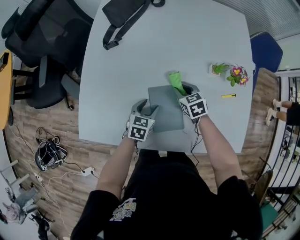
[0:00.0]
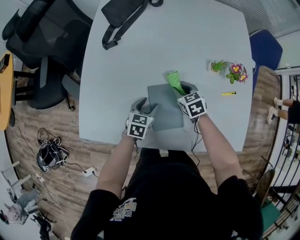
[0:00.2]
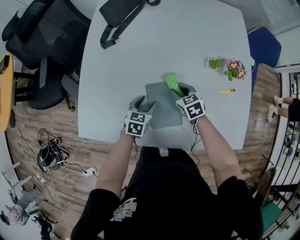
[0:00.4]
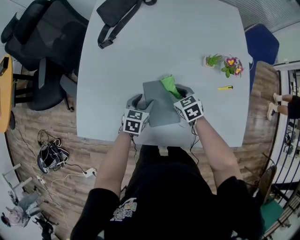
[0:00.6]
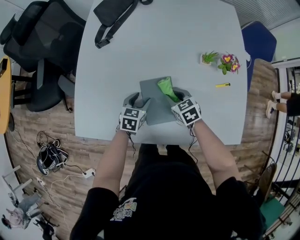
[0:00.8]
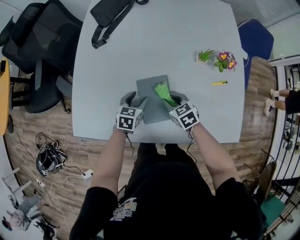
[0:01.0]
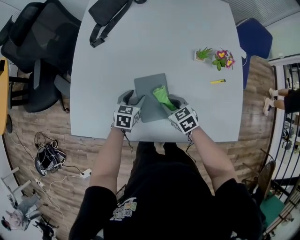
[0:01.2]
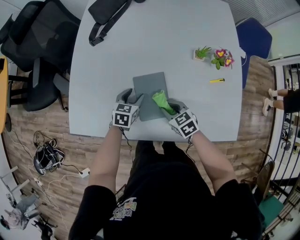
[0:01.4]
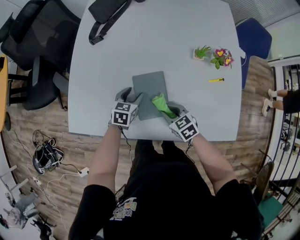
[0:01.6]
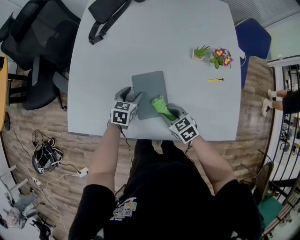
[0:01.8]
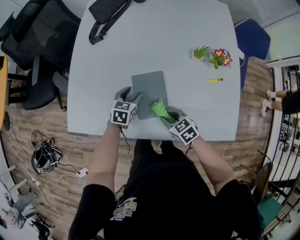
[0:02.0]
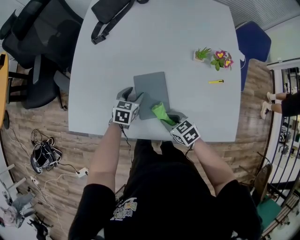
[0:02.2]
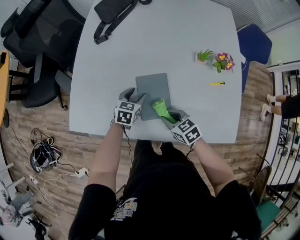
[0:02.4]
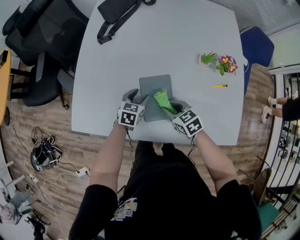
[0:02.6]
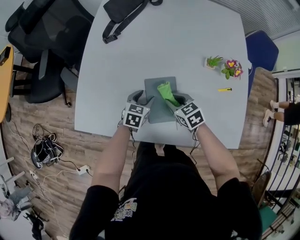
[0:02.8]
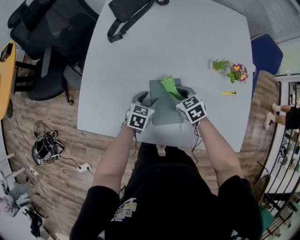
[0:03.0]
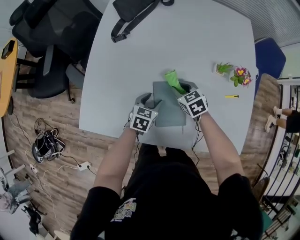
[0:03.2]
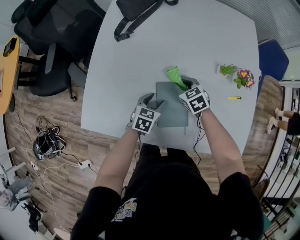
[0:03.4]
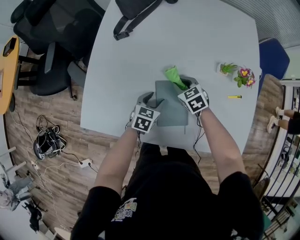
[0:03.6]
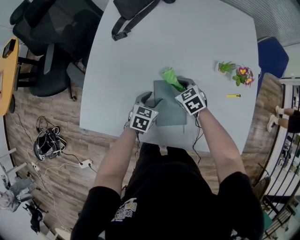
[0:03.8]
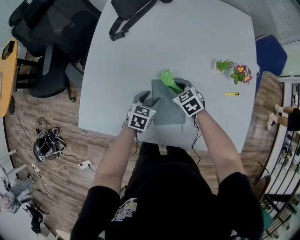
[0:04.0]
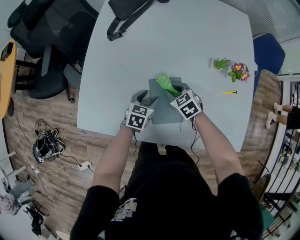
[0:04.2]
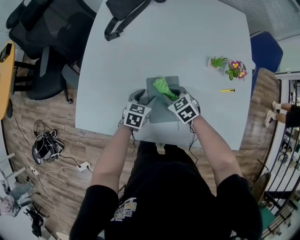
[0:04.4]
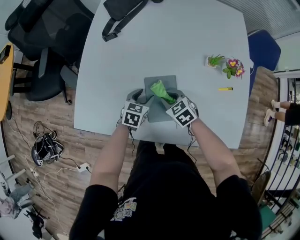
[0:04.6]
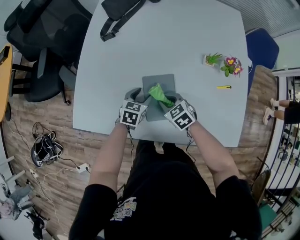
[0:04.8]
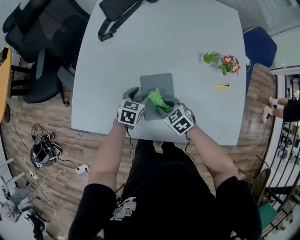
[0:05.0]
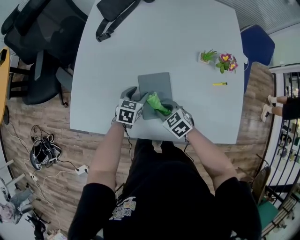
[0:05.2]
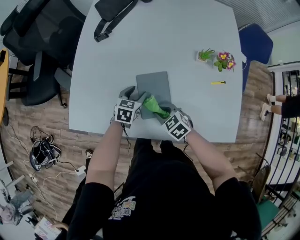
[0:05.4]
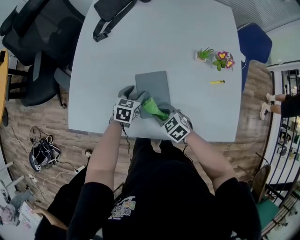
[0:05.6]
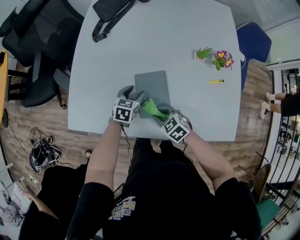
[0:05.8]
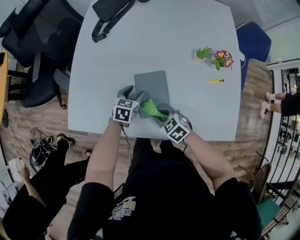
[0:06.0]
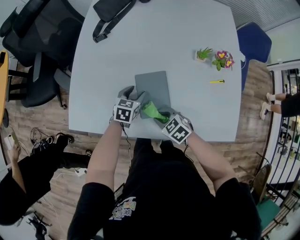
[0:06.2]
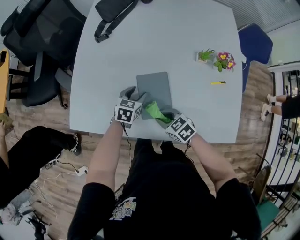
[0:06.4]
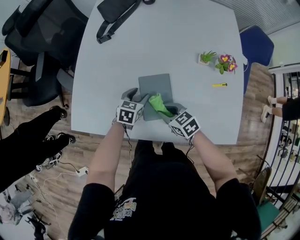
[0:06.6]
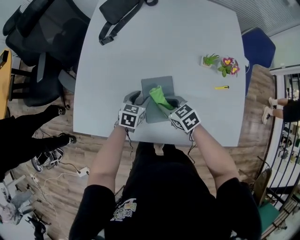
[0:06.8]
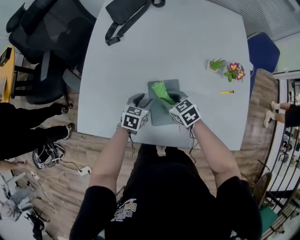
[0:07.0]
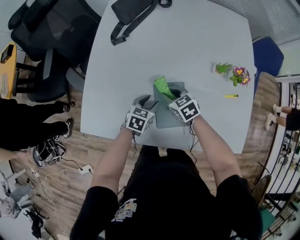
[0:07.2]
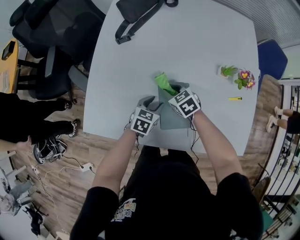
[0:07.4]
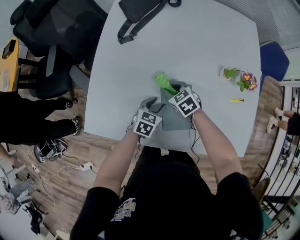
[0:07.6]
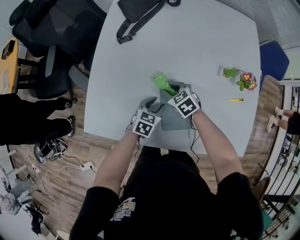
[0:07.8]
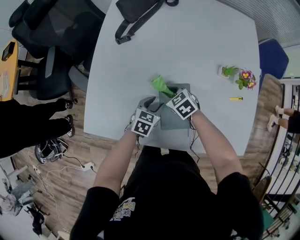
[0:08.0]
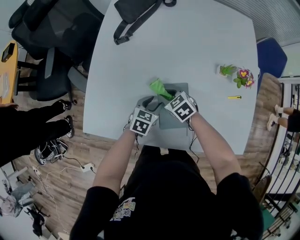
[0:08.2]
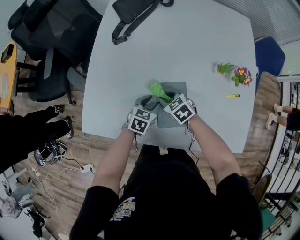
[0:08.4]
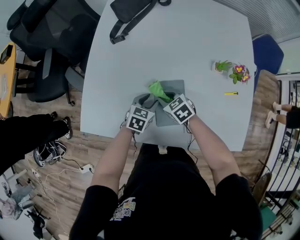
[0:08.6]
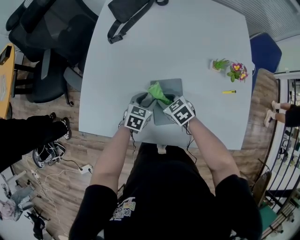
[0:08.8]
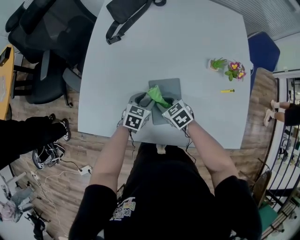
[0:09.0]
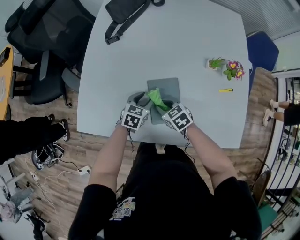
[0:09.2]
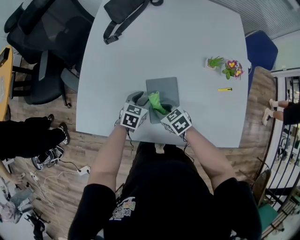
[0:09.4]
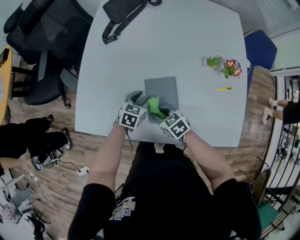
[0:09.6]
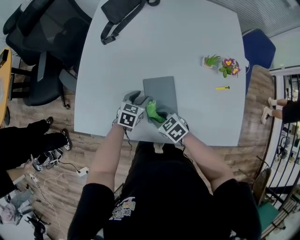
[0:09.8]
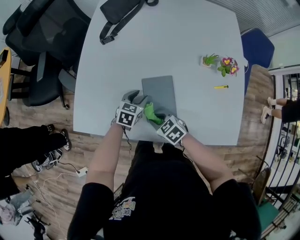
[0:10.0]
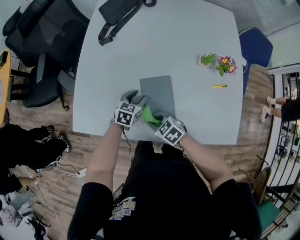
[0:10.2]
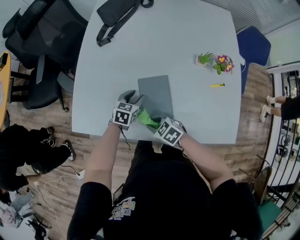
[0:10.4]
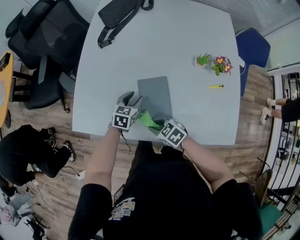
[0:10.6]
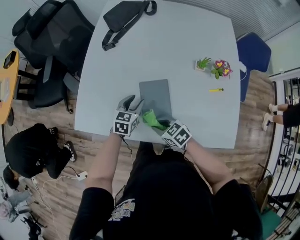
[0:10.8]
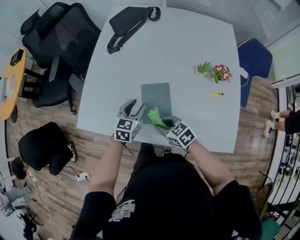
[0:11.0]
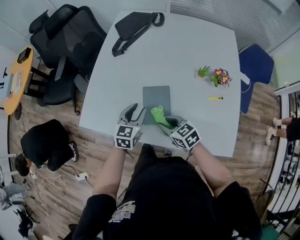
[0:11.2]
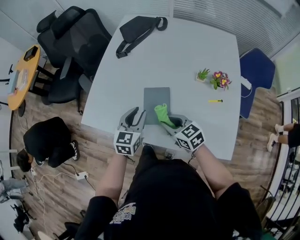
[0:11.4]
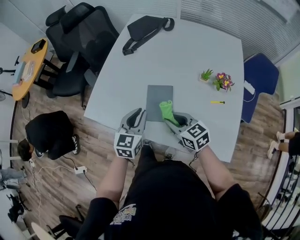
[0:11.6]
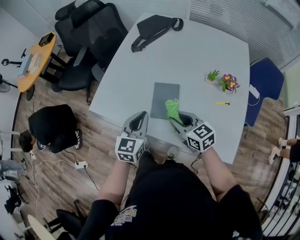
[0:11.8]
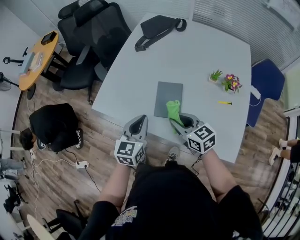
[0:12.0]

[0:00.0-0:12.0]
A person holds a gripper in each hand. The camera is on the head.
0.0 to 1.6 s: The right gripper travels backward by approximately 15 cm.
1.6 to 3.0 s: The right gripper moves forward, some 10 cm.
3.0 to 4.4 s: The grippers stay close to where they were, moving slightly.
4.4 to 6.0 s: The right gripper goes some 15 cm backward.
6.0 to 7.6 s: The right gripper travels forward by some 20 cm.
7.6 to 9.0 s: The right gripper moves backward, roughly 10 cm.
9.0 to 10.4 s: The right gripper is displaced backward by approximately 10 cm.
10.4 to 12.0 s: The left gripper shifts about 25 cm upward and backward, swivels about 40 degrees, and closes up; the right gripper heads upward and to the right, covering roughly 20 cm, and rotates some 30 degrees.

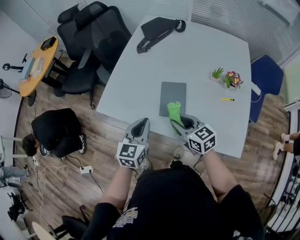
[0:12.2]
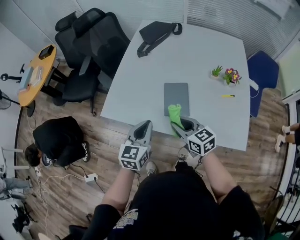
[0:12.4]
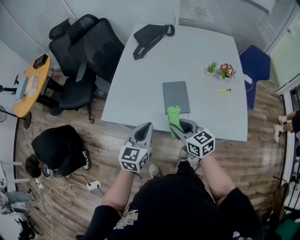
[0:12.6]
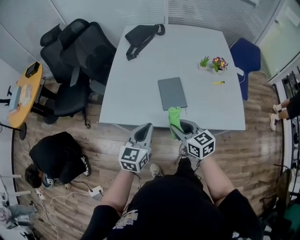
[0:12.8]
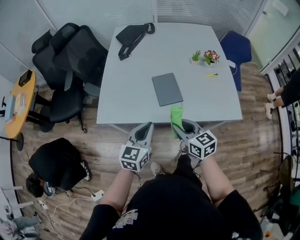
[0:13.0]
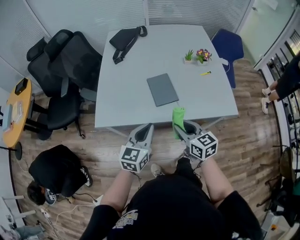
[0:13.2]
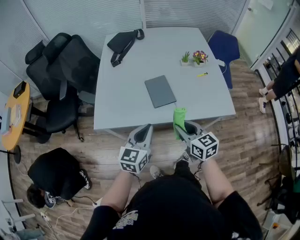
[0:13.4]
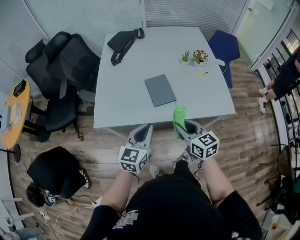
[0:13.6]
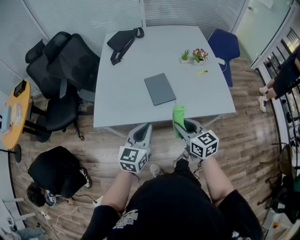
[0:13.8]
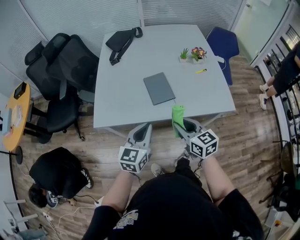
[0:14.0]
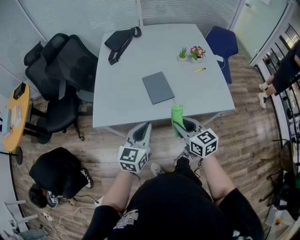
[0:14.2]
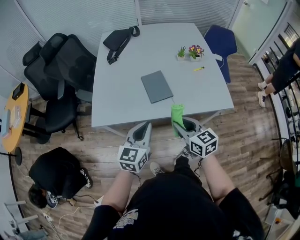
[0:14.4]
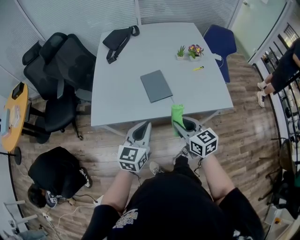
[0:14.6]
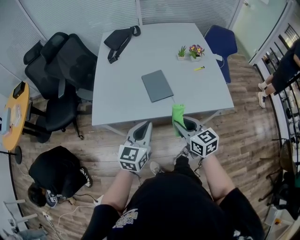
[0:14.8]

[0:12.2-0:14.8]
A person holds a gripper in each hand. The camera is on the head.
12.2 to 13.4 s: The right gripper shifts by approximately 15 cm, and changes its angle by approximately 30 degrees; the left gripper moves roughly 10 cm, and turns by roughly 30 degrees.
13.4 to 14.8 s: The grippers make only small movements.

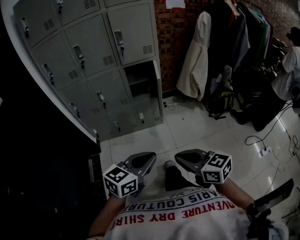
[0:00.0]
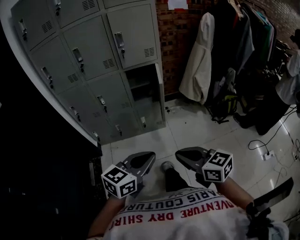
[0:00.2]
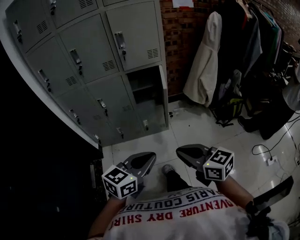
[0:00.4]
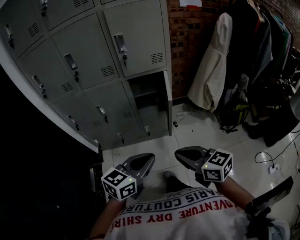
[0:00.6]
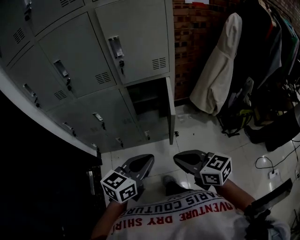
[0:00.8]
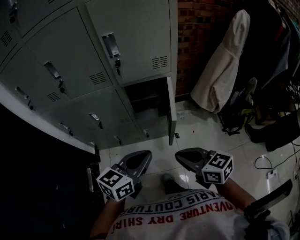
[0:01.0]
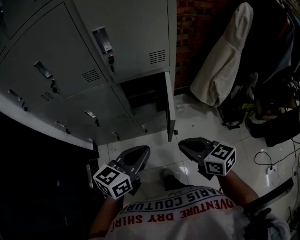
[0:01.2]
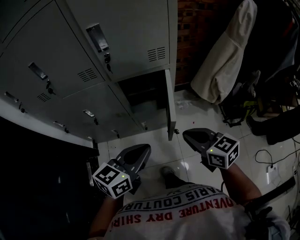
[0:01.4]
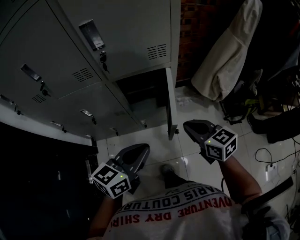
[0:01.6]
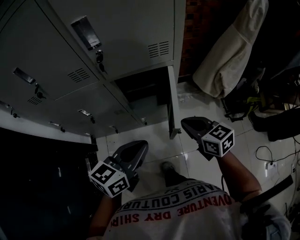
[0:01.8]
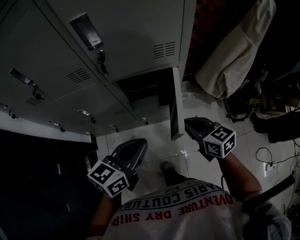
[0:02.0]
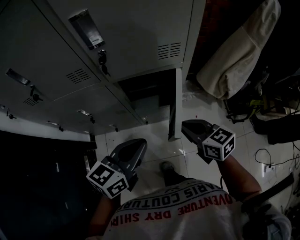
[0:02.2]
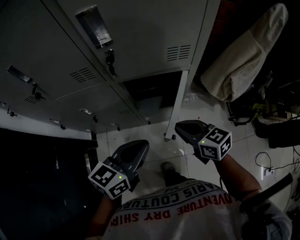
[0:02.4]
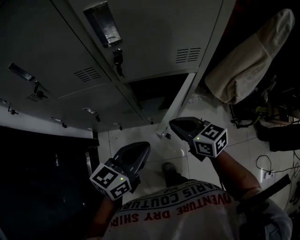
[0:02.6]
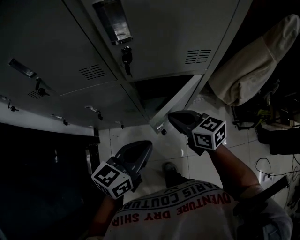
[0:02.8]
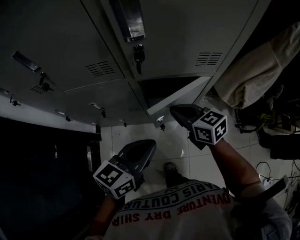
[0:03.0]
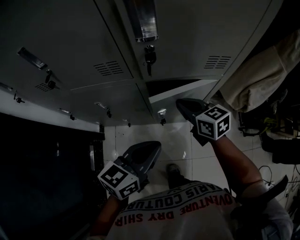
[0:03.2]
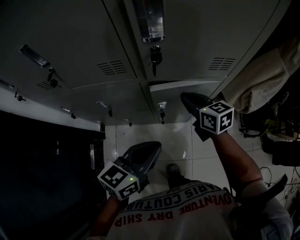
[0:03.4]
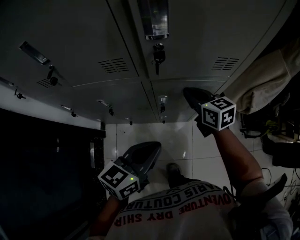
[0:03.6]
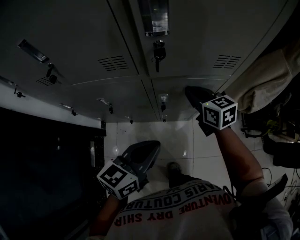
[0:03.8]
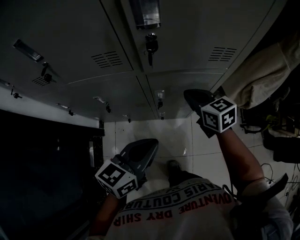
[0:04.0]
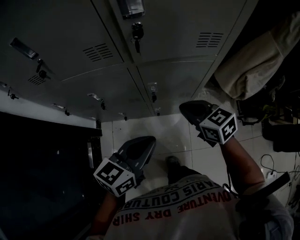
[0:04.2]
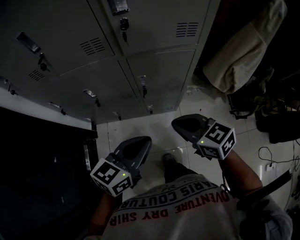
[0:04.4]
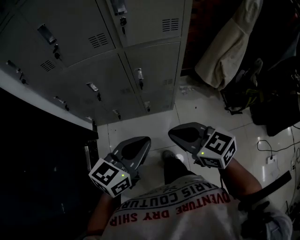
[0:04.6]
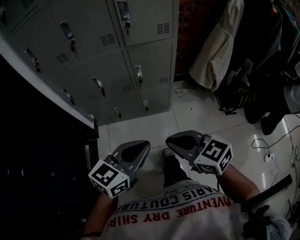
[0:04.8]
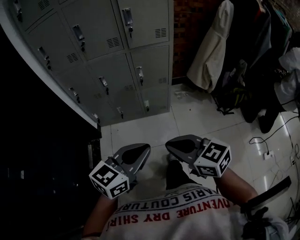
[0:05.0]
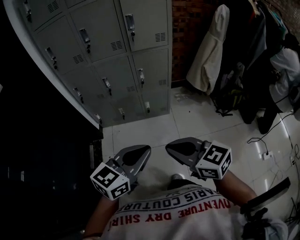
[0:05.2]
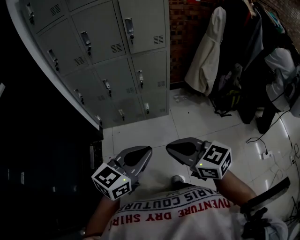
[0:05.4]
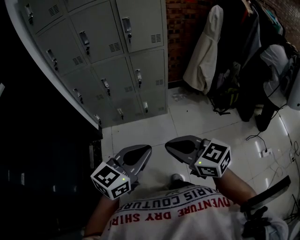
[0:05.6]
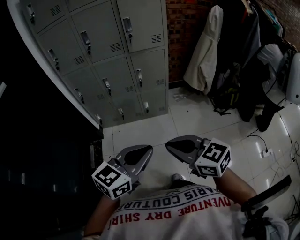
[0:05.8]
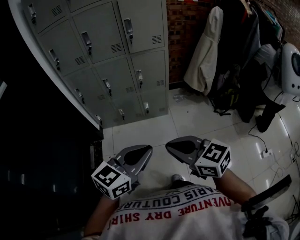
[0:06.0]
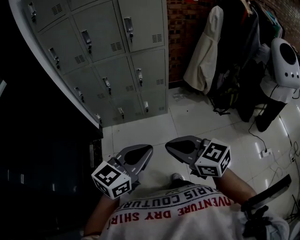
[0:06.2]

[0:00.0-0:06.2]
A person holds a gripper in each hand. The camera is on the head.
0.0 to 1.6 s: The pair of grippers is taken forward, some 50 cm.
1.6 to 3.2 s: The right gripper is displaced forward and to the left by approximately 25 cm. Meanwhile the left gripper shifts about 10 cm forward and to the left.
3.2 to 4.6 s: The left gripper is displaced backward by roughly 20 cm. Meanwhile the right gripper heads backward, covering roughly 35 cm.
4.6 to 6.2 s: The two grippers go roughly 35 cm backward.

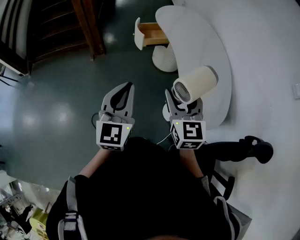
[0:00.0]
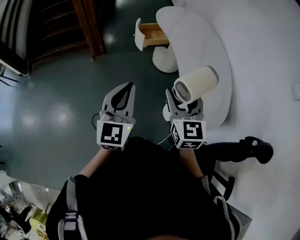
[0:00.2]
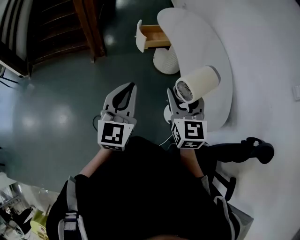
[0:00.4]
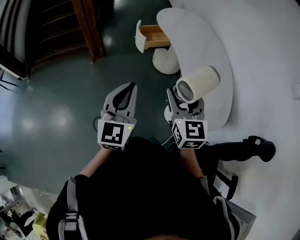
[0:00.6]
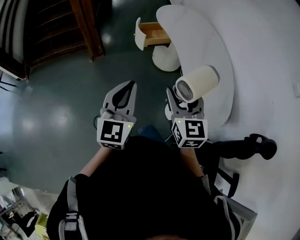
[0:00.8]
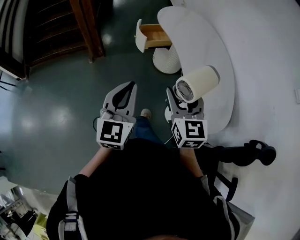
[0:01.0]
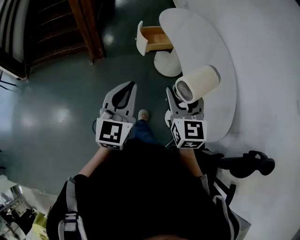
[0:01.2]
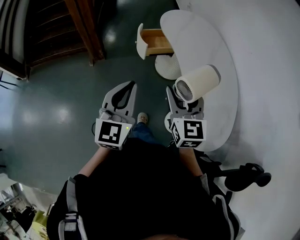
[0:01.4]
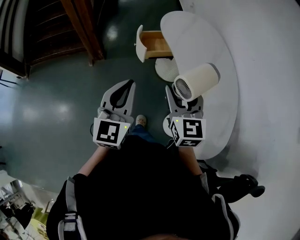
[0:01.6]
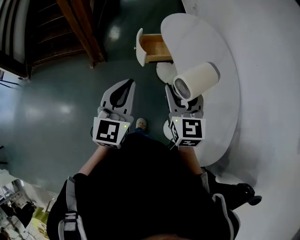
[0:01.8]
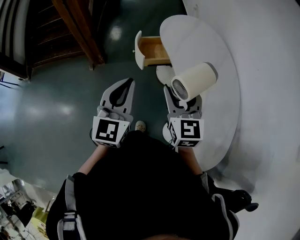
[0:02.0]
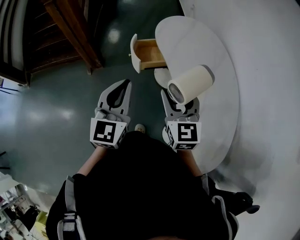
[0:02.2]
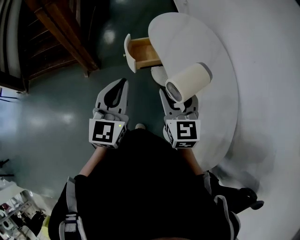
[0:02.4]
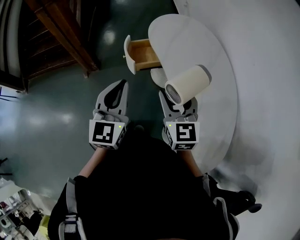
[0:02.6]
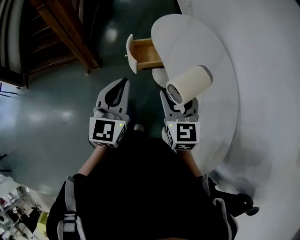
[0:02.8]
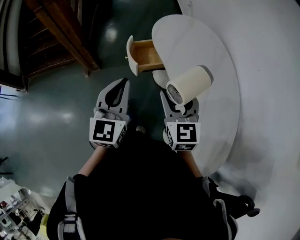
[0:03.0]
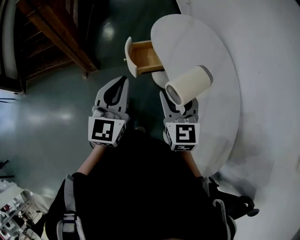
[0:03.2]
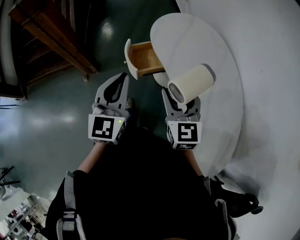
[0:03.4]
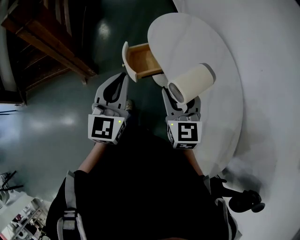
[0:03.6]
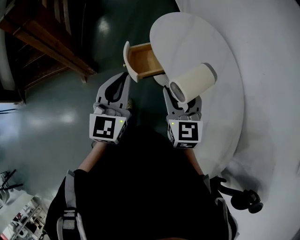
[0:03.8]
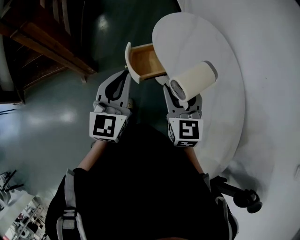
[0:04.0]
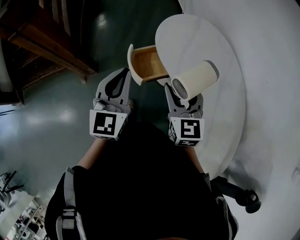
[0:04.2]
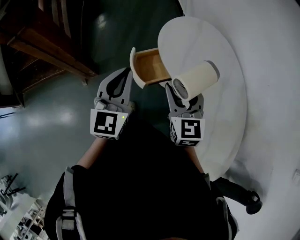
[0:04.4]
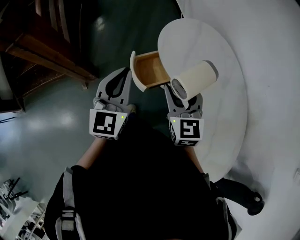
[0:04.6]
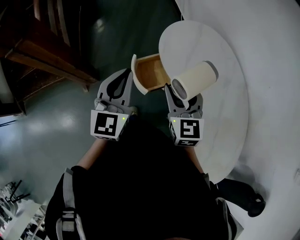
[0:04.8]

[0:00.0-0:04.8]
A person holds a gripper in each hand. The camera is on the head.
0.0 to 1.6 s: Both grippers move forward, about 20 cm.
1.6 to 3.2 s: Both grippers move forward, about 20 cm.
3.2 to 4.8 s: The two grippers go approximately 20 cm forward.
